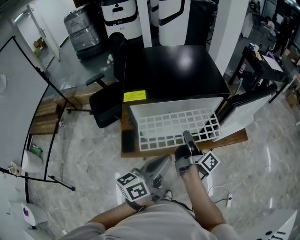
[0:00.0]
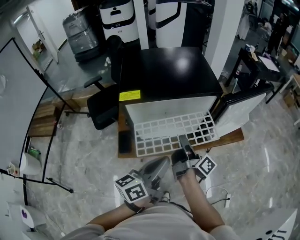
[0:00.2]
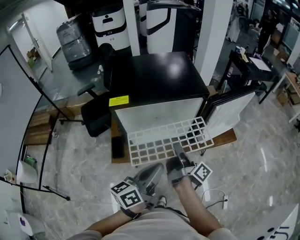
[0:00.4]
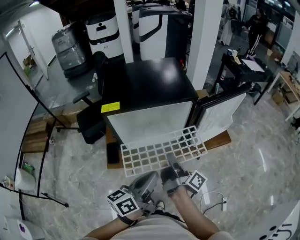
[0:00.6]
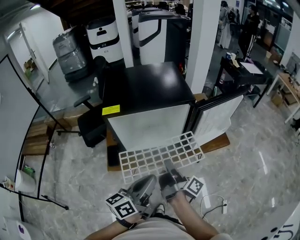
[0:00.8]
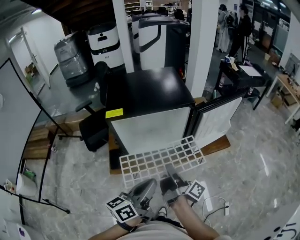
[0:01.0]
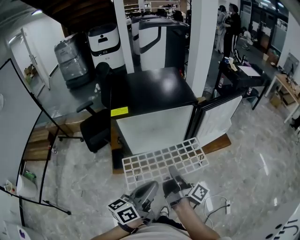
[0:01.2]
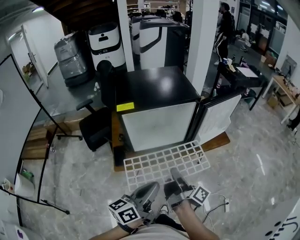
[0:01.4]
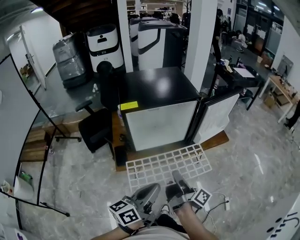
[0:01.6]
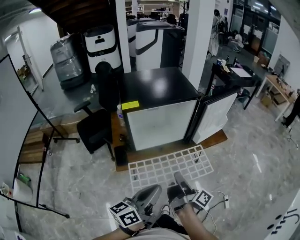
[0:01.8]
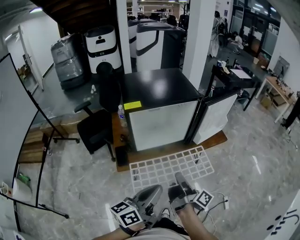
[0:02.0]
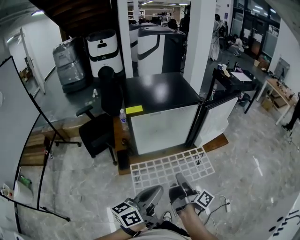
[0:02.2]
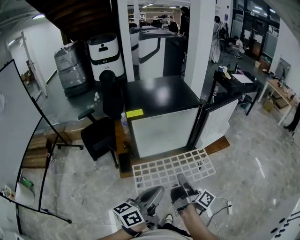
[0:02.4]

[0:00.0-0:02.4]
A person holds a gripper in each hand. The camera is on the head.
0:00.0 to 0:01.2: The left gripper ends up some 10 cm from where it was.
0:01.2 to 0:02.4: The left gripper moves some 10 cm.

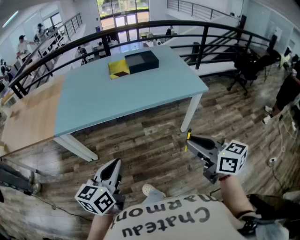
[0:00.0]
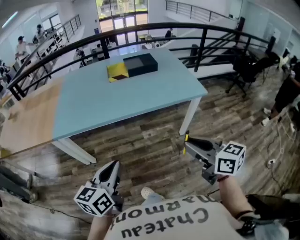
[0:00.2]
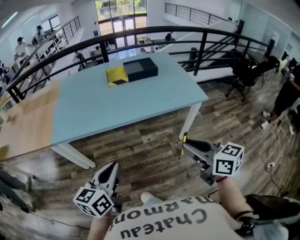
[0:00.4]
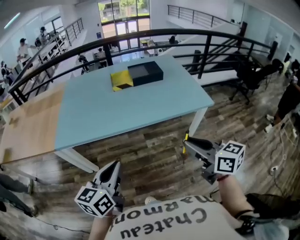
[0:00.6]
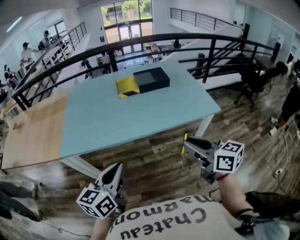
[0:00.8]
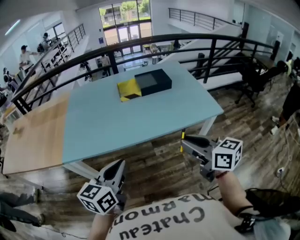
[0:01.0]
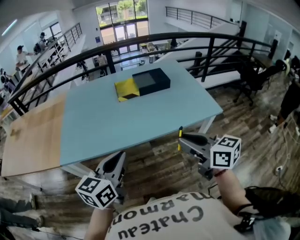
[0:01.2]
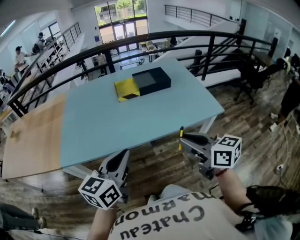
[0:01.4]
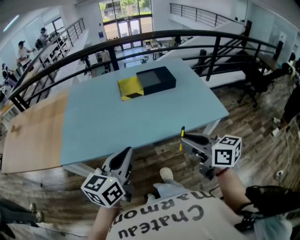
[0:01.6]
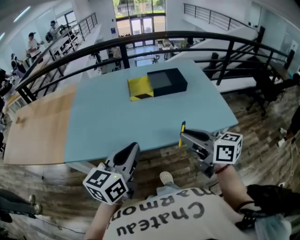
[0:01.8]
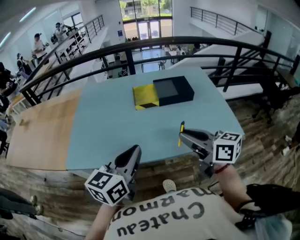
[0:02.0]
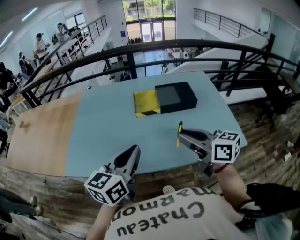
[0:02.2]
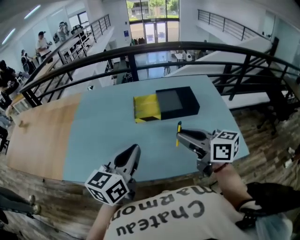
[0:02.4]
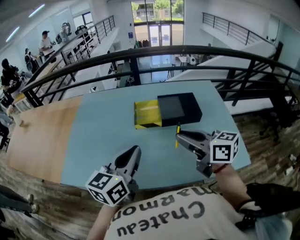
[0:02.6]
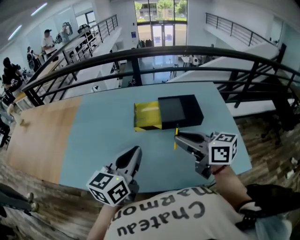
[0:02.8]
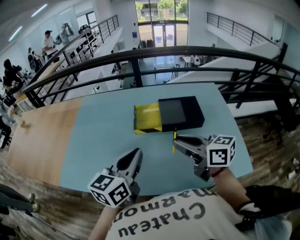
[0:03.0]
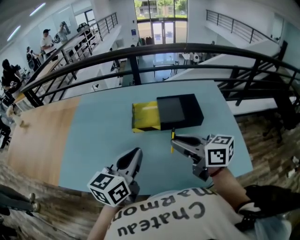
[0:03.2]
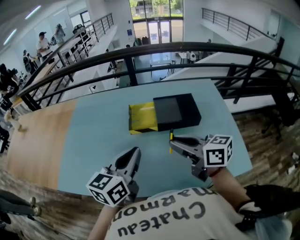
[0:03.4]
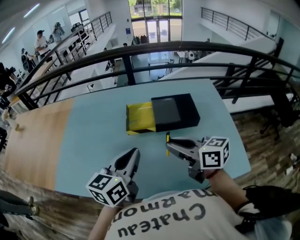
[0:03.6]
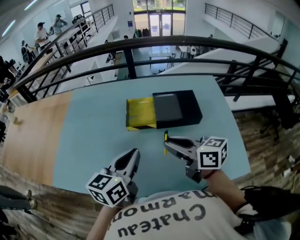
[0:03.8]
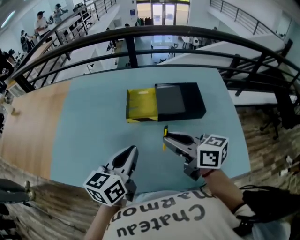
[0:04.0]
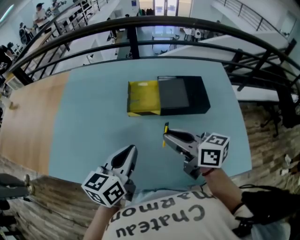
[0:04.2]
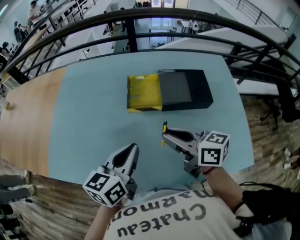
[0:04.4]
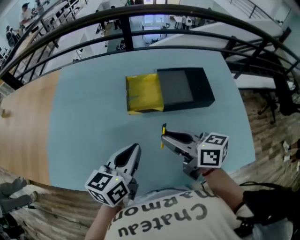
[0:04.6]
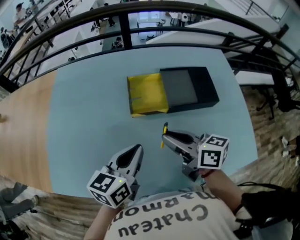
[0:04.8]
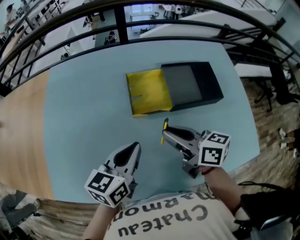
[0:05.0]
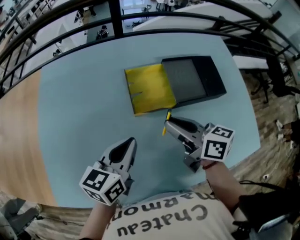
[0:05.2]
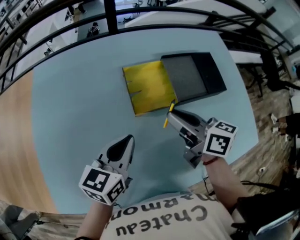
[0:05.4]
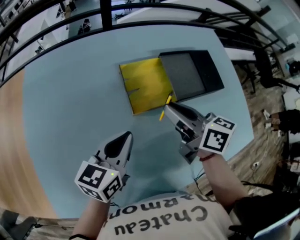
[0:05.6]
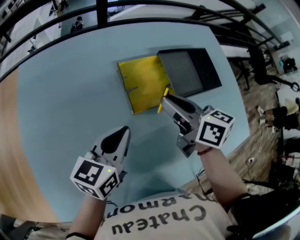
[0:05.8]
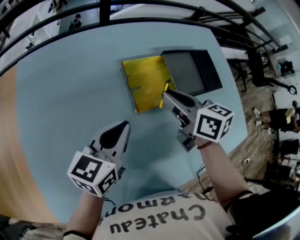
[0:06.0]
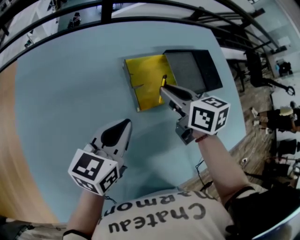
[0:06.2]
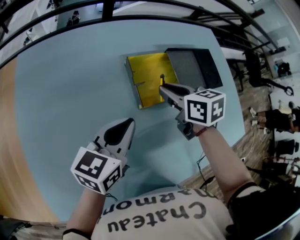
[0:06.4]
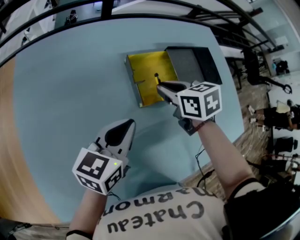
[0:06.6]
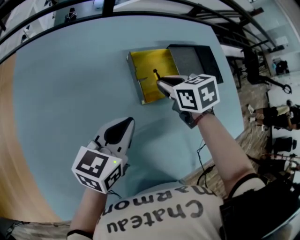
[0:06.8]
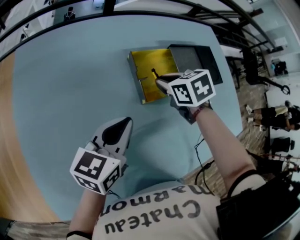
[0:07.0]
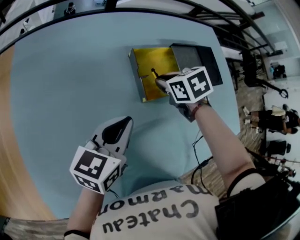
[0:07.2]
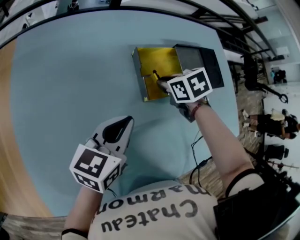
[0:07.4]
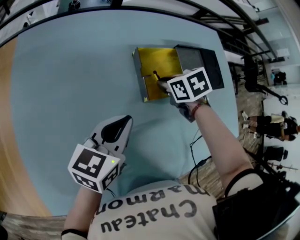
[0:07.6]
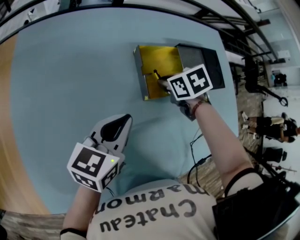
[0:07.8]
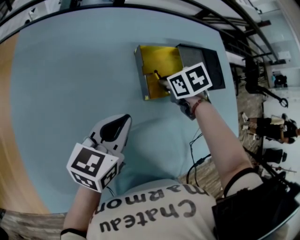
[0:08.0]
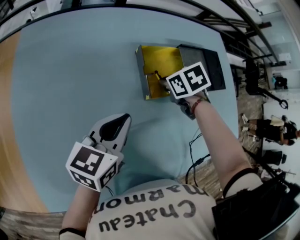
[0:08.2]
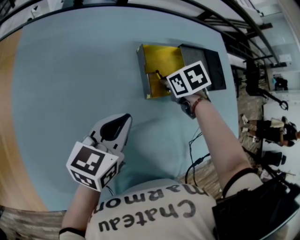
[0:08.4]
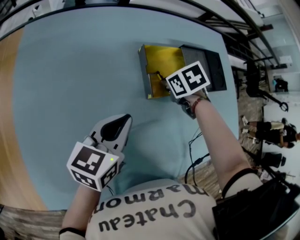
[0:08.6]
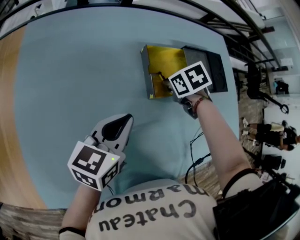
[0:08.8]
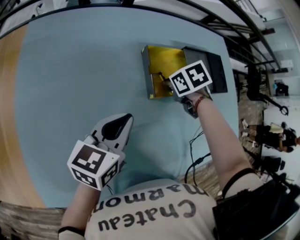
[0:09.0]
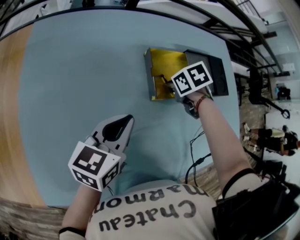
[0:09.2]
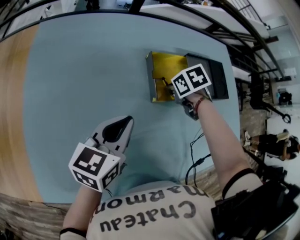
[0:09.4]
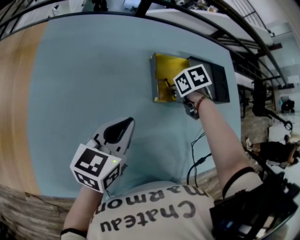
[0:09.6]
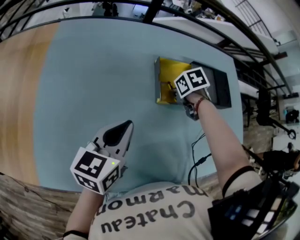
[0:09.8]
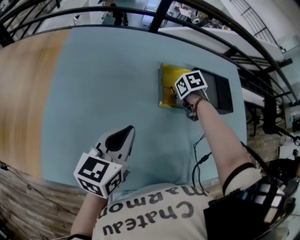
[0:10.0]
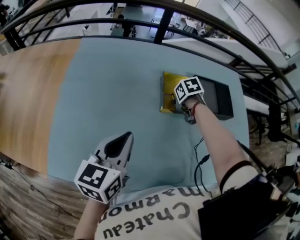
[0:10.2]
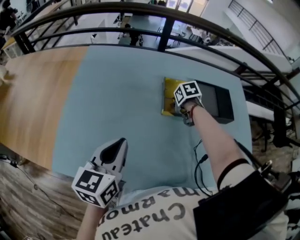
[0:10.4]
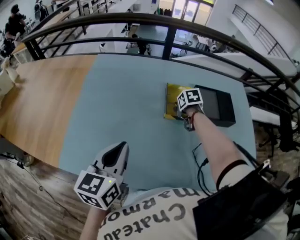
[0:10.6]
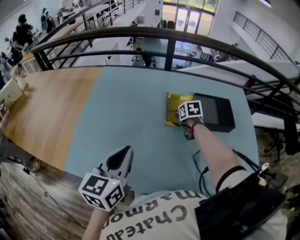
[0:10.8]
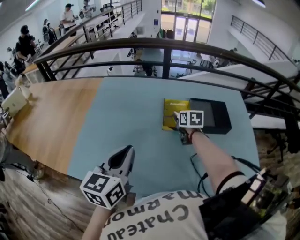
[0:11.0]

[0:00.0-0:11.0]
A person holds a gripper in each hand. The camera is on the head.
0:00.0 to 0:01.6: The two grippers go about 20 cm forward.
0:01.6 to 0:03.2: The grippers both shift forward by some 25 cm.
0:03.2 to 0:04.8: Both grippers travel together downward, approximately 10 cm.
0:04.8 to 0:06.2: The right gripper travels forward by approximately 15 cm, and turns by roughly 30 degrees. Meanwhile the left gripper shifts roughly 15 cm forward and to the left.
0:06.2 to 0:07.8: The right gripper is displaced downward by some 10 cm, and angles its fingers downward, by roughly 40 degrees.
0:07.8 to 0:09.4: There are only small adjustments of the grippers.
0:09.4 to 0:11.0: Both grippers travel together upward, some 20 cm. The right gripper angles its fingers upward, by roughly 40 degrees. Meanwhile the left gripper swivels some 30 degrees.

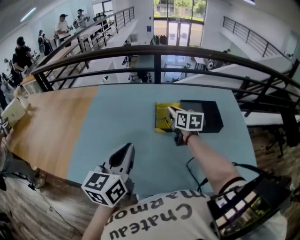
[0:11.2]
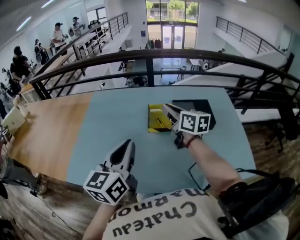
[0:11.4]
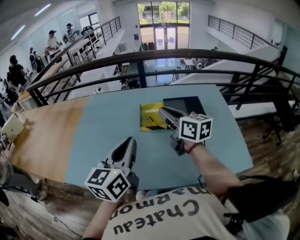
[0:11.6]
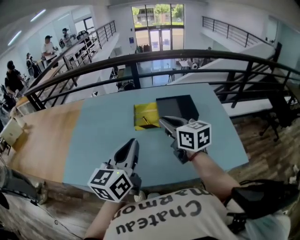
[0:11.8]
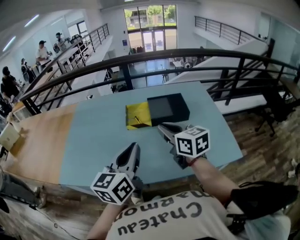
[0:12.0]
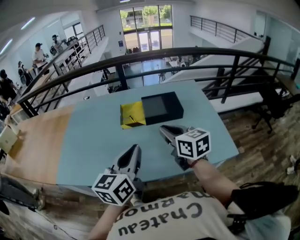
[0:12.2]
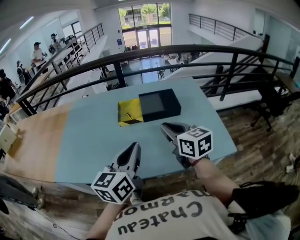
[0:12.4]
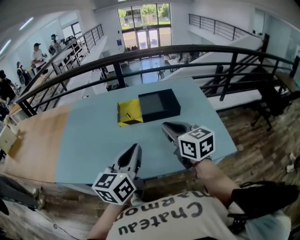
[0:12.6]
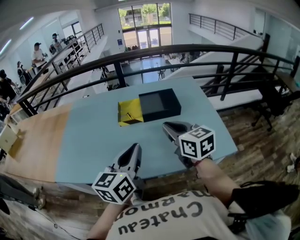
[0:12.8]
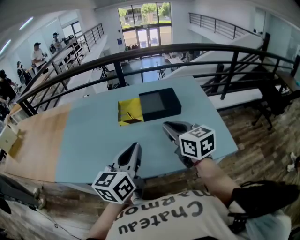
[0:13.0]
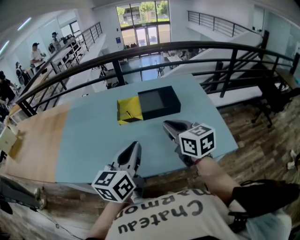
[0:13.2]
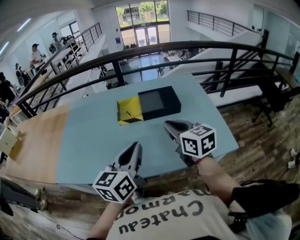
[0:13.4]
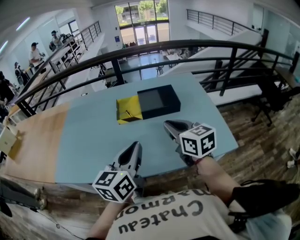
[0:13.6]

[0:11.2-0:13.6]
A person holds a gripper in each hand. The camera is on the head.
0:11.2 to 0:12.4: The left gripper shifts roughly 15 cm to the right, backward and downward. Meanwhile the right gripper goes roughly 25 cm backward.
0:12.4 to 0:13.6: The grippers make only small movements.

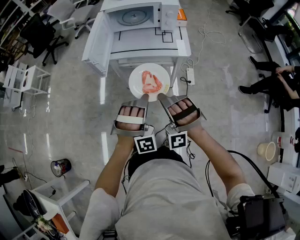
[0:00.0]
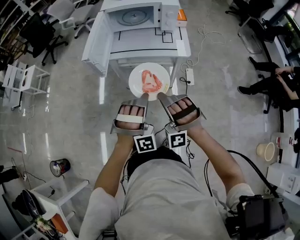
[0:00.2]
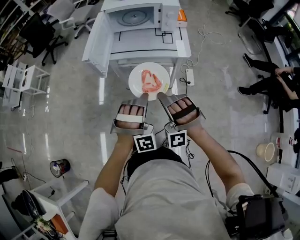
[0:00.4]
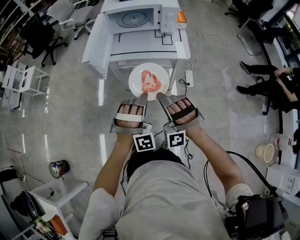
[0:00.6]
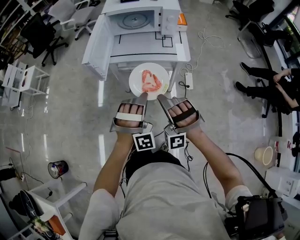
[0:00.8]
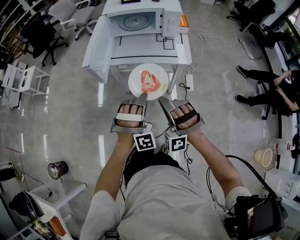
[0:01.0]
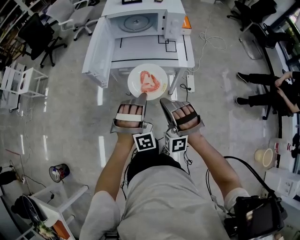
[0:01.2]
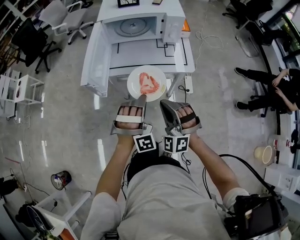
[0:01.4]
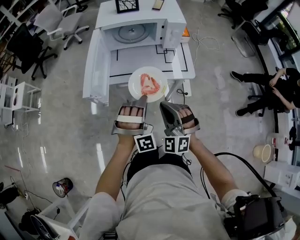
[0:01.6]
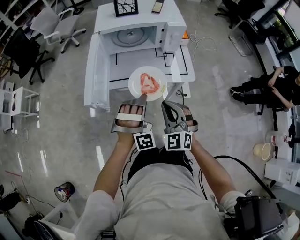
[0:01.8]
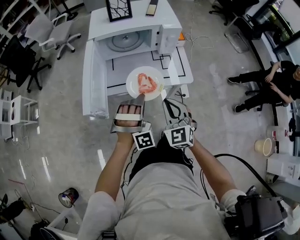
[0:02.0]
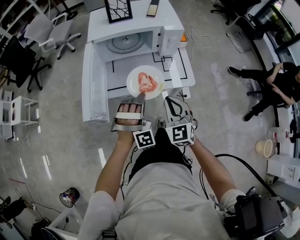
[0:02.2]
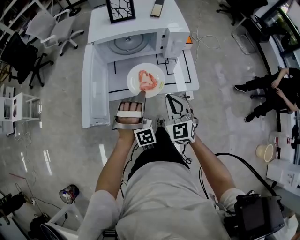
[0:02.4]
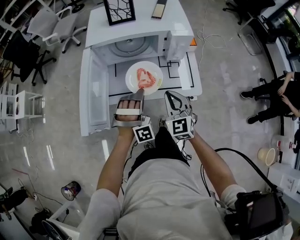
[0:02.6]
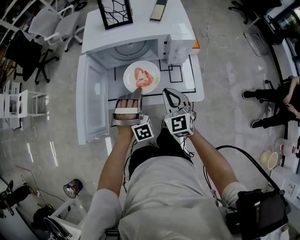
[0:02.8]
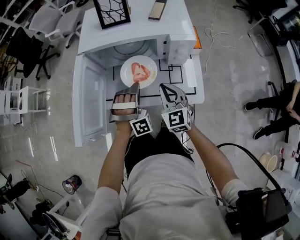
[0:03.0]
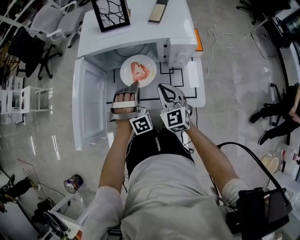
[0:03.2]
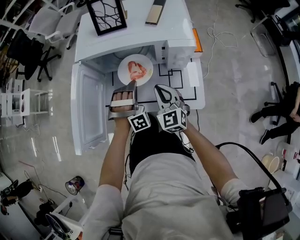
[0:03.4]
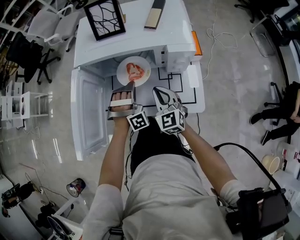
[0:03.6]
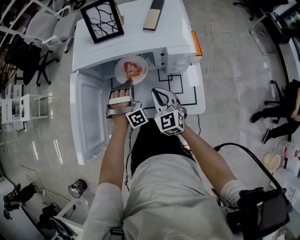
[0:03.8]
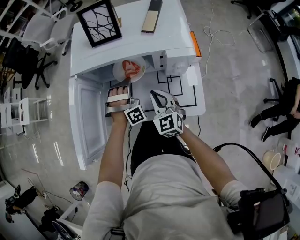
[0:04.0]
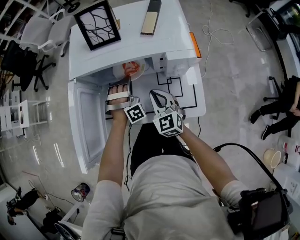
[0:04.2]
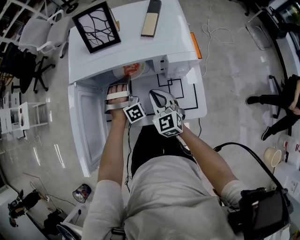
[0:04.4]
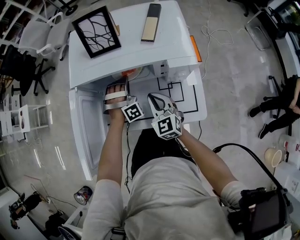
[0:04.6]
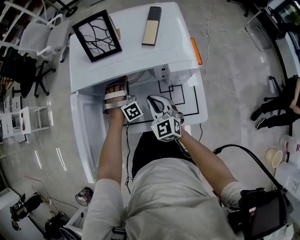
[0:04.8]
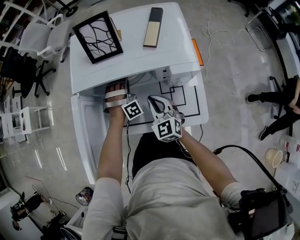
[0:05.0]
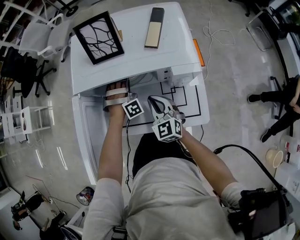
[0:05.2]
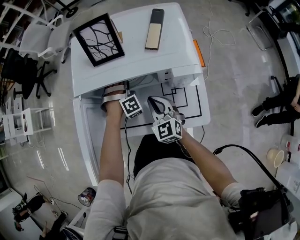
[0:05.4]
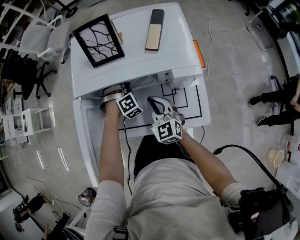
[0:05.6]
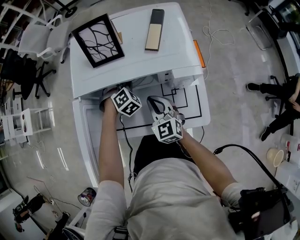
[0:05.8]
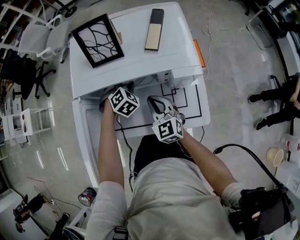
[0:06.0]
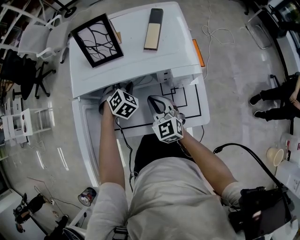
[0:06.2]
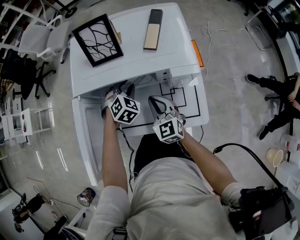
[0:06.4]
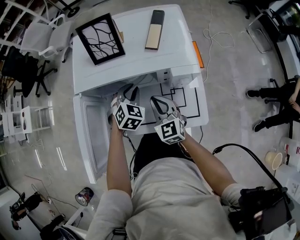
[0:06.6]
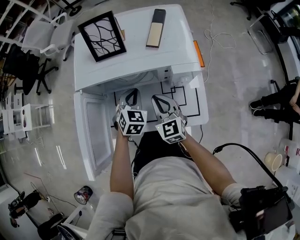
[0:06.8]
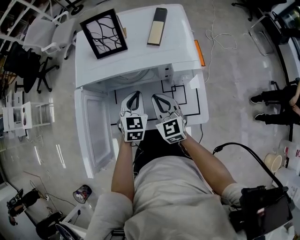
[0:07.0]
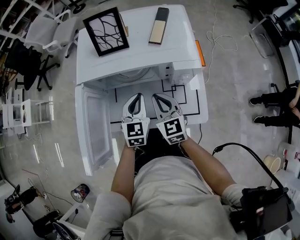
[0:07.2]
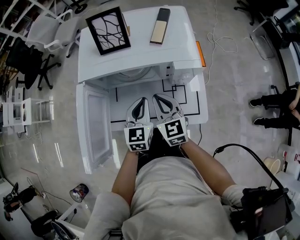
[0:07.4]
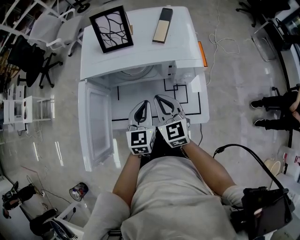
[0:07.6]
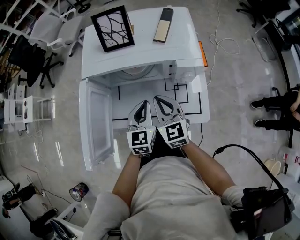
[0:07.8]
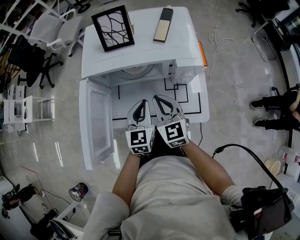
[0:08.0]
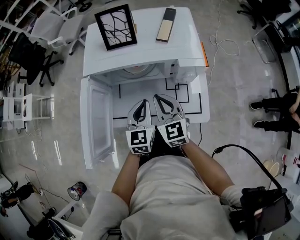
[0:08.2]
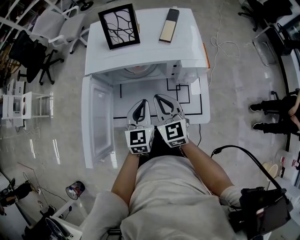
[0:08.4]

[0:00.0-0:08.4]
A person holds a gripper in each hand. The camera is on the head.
0:00.0 to 0:01.4: The right gripper shifts by some 10 cm, and turns by roughly 30 degrees.
0:01.4 to 0:02.8: The right gripper moves roughly 25 cm, and rotates around the line of its fingers by some 50 degrees, clockwise from behind.
0:02.8 to 0:04.2: The right gripper ends up roughly 10 cm from where it was.
0:07.0 to 0:08.4: The right gripper shifts by about 5 cm.
